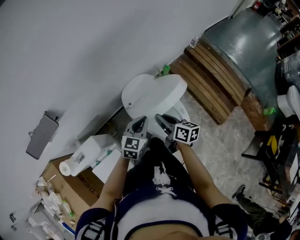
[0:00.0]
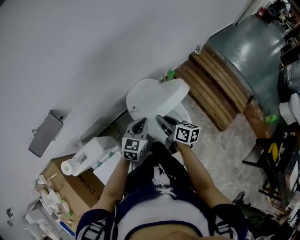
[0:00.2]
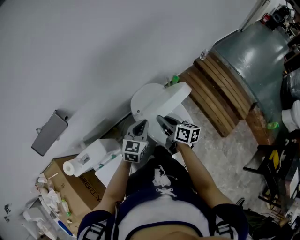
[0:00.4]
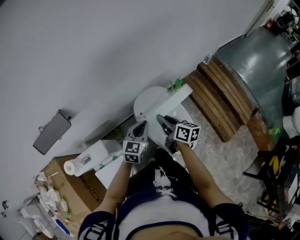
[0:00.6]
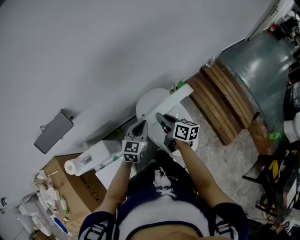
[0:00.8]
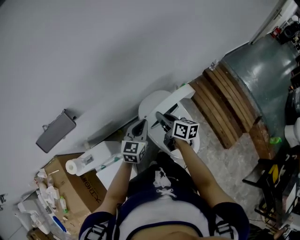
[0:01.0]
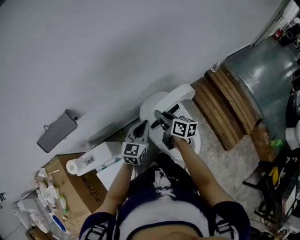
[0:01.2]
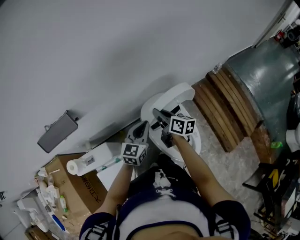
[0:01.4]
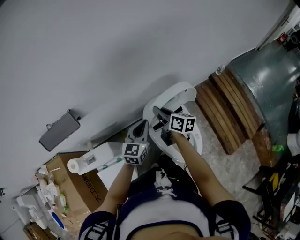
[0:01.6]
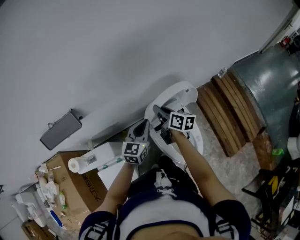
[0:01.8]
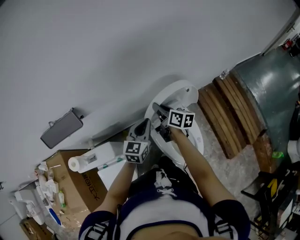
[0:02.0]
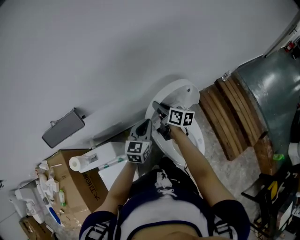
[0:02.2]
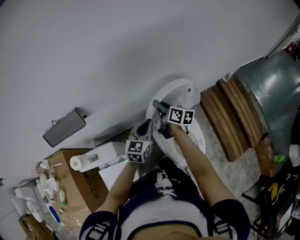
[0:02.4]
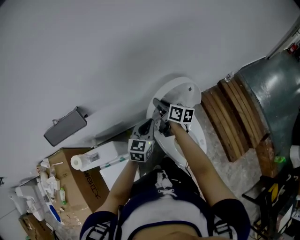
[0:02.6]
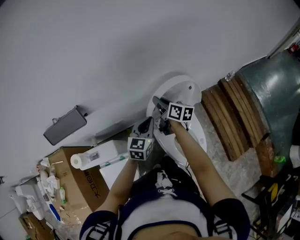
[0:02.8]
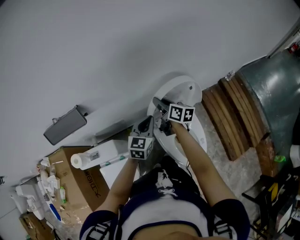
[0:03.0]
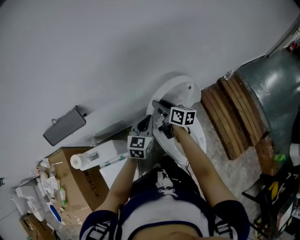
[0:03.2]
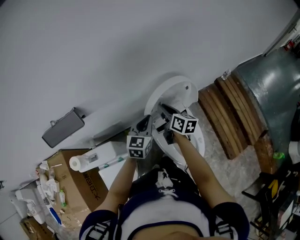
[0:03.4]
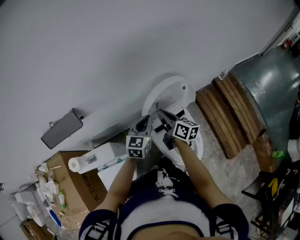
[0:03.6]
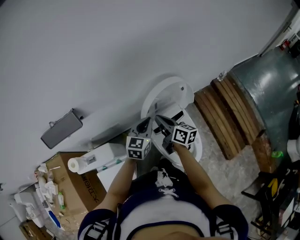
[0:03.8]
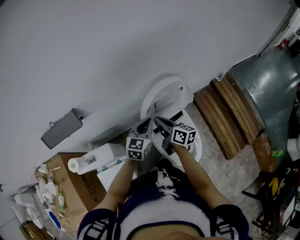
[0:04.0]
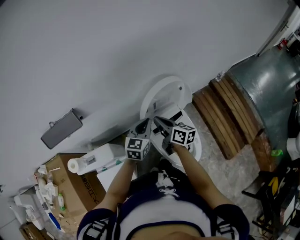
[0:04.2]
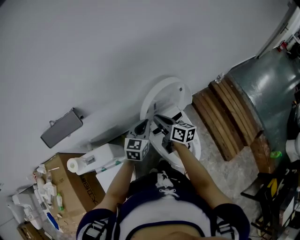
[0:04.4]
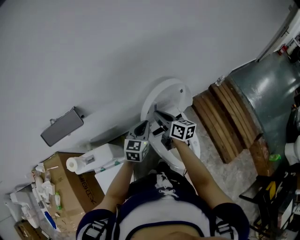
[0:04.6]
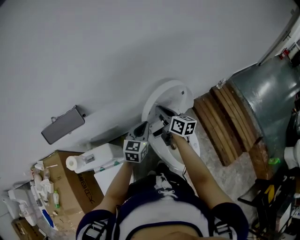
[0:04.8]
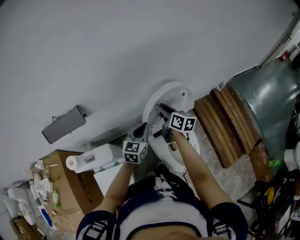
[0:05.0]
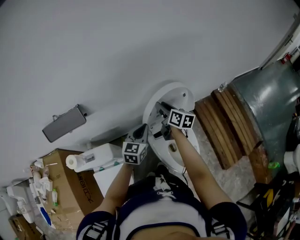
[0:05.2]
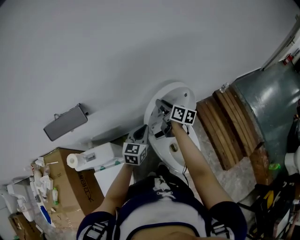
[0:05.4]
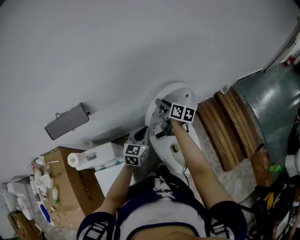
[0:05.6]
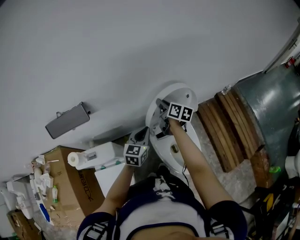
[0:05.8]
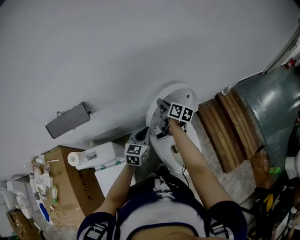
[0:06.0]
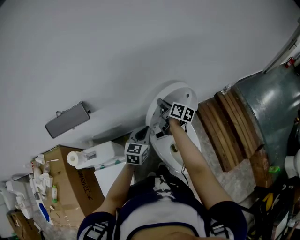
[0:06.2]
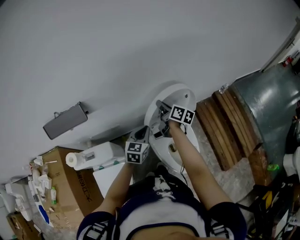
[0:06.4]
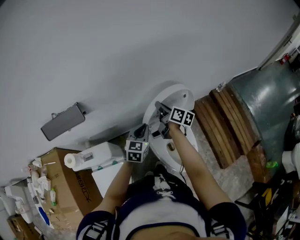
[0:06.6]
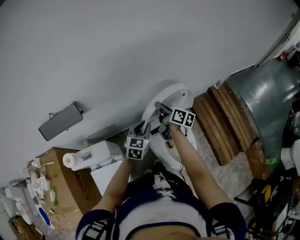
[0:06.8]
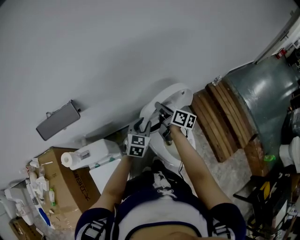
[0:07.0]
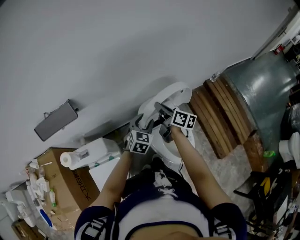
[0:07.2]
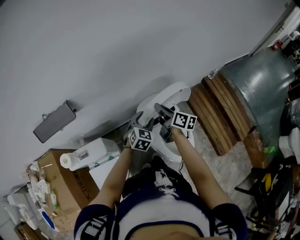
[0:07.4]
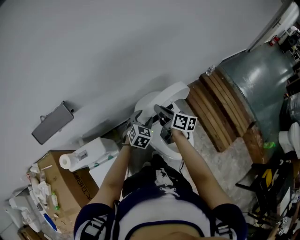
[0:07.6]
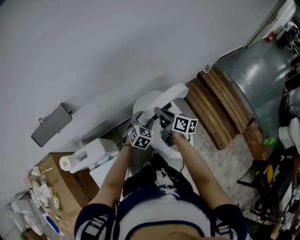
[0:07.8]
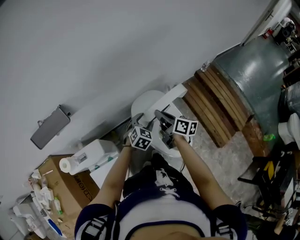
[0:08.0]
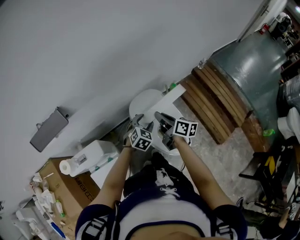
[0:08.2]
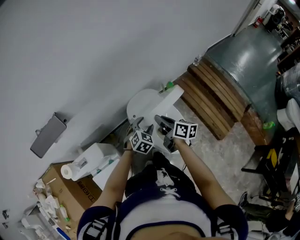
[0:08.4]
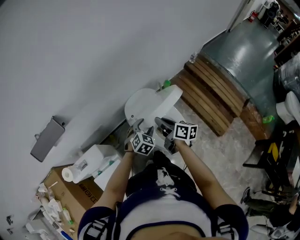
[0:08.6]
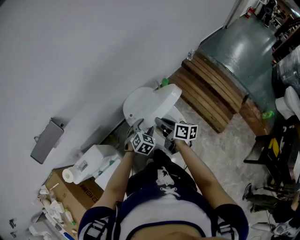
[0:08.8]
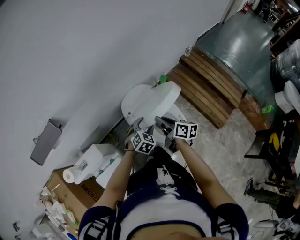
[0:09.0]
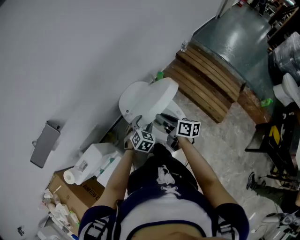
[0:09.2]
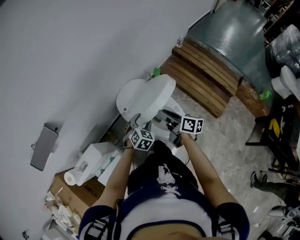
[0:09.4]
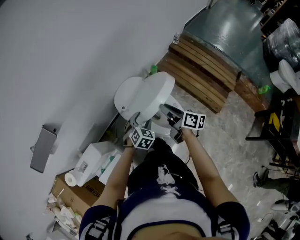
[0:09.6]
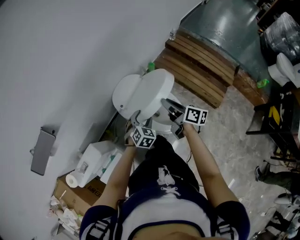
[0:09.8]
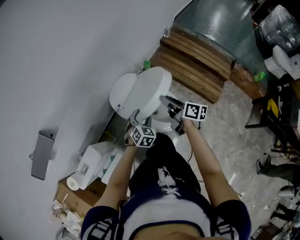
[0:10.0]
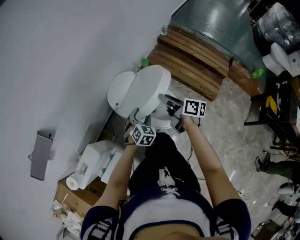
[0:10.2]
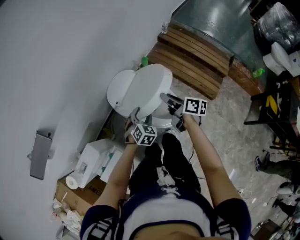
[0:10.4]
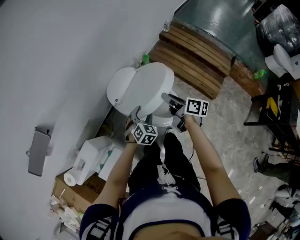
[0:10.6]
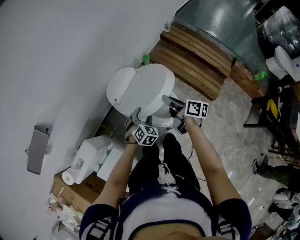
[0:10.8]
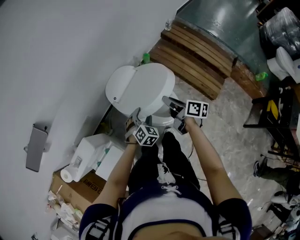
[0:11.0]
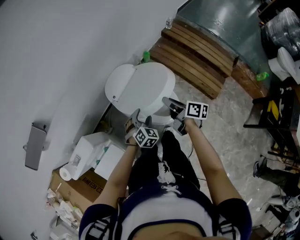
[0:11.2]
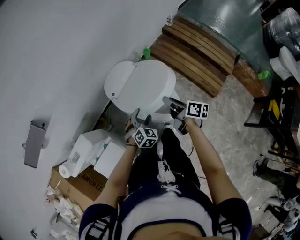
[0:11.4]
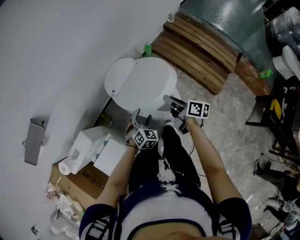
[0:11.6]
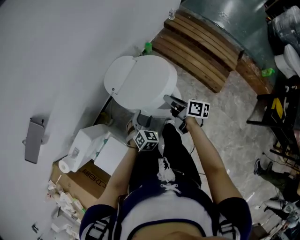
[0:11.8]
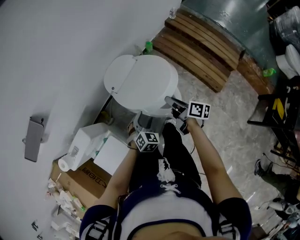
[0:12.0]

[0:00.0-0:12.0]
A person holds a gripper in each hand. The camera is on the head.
0:00.0 to 0:01.6: The right gripper travels forward and to the left by about 20 cm; the left gripper heads forward, to the left and upward, covering about 15 cm, and rotates some 20 degrees.
0:01.6 to 0:03.0: The right gripper goes about 5 cm forward.
0:03.0 to 0:04.4: The right gripper heads backward, covering about 10 cm, and opens, then closes again.
0:04.4 to 0:06.0: The right gripper shifts some 10 cm forward.
0:06.0 to 0:07.6: The right gripper travels backward by approximately 10 cm. The left gripper moves to the right and downward, about 10 cm, rotates approximately 30 degrees, and opens up.
0:07.6 to 0:09.0: The two grippers go some 15 cm backward, to the right and downward.
0:09.0 to 0:10.4: The right gripper travels to the right by some 10 cm; the left gripper changes place by approximately 5 cm.
0:10.4 to 0:12.0: The left gripper travels backward by approximately 10 cm. The right gripper shifts roughly 10 cm backward and downward.

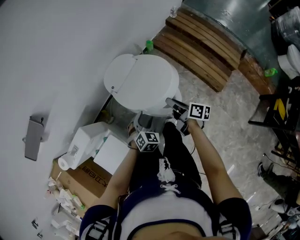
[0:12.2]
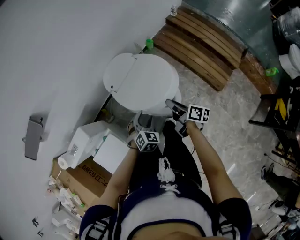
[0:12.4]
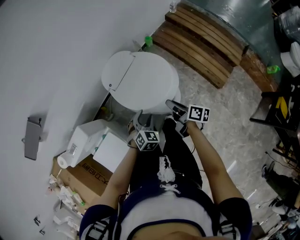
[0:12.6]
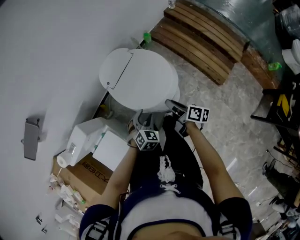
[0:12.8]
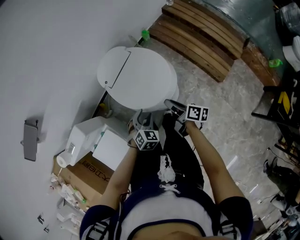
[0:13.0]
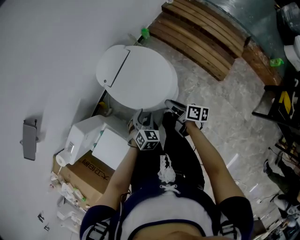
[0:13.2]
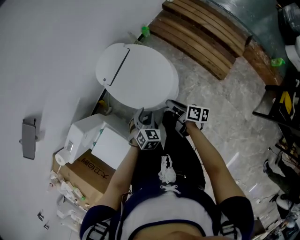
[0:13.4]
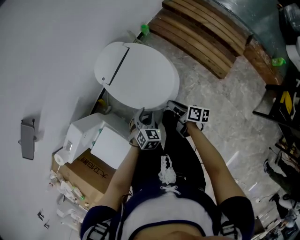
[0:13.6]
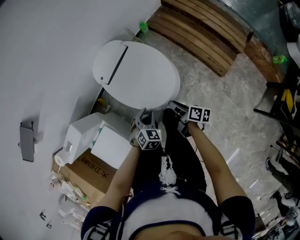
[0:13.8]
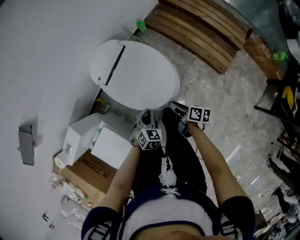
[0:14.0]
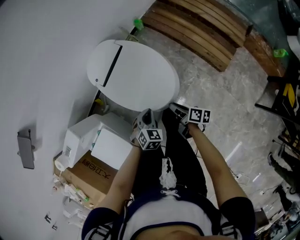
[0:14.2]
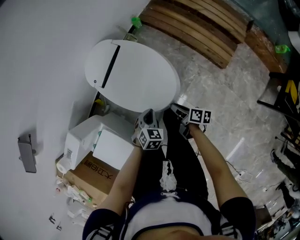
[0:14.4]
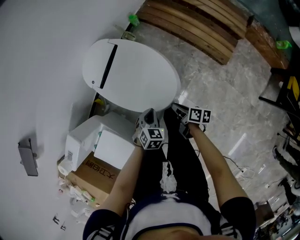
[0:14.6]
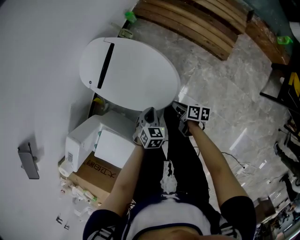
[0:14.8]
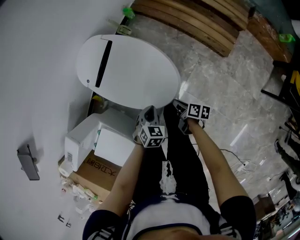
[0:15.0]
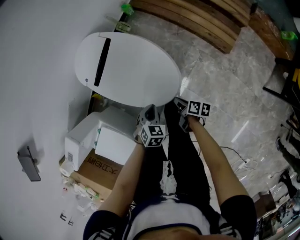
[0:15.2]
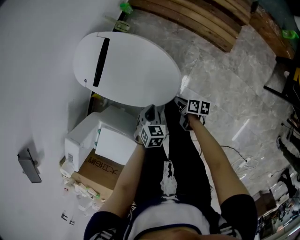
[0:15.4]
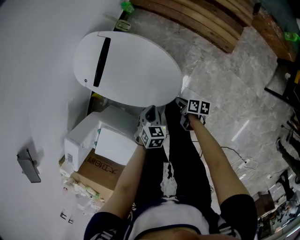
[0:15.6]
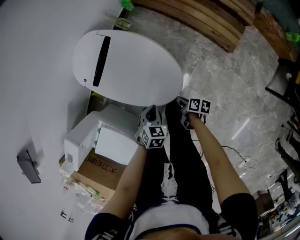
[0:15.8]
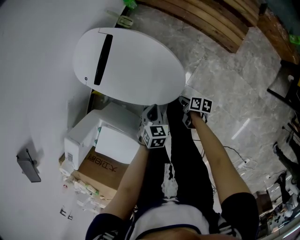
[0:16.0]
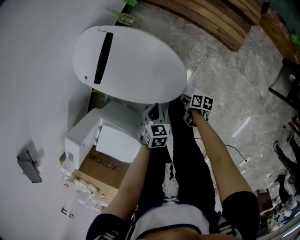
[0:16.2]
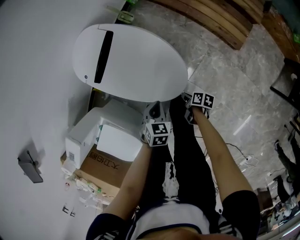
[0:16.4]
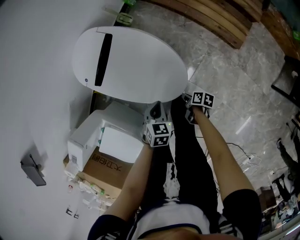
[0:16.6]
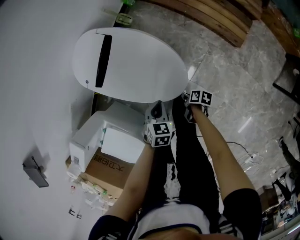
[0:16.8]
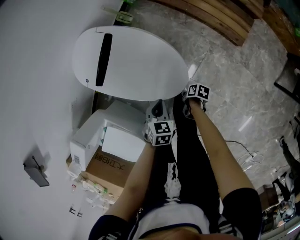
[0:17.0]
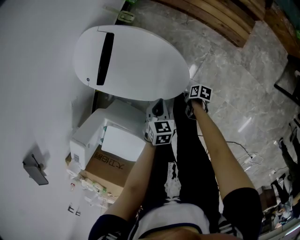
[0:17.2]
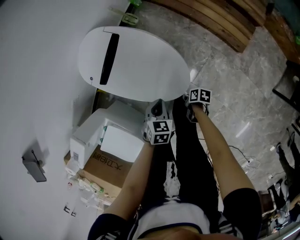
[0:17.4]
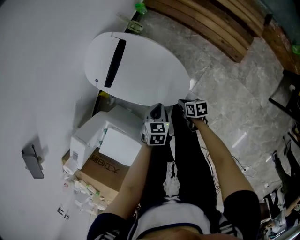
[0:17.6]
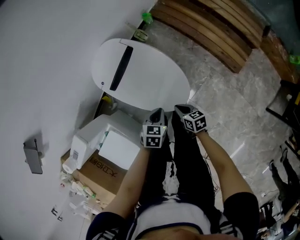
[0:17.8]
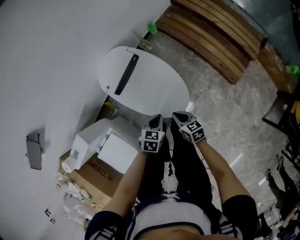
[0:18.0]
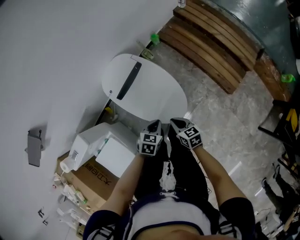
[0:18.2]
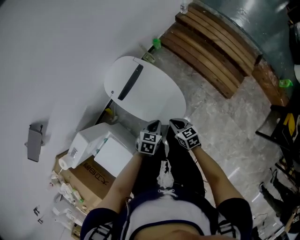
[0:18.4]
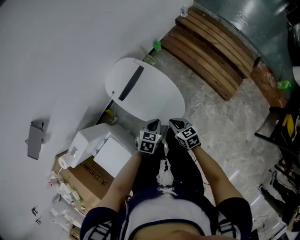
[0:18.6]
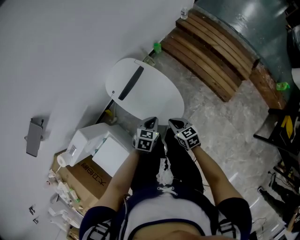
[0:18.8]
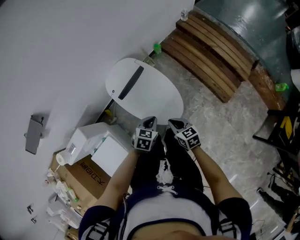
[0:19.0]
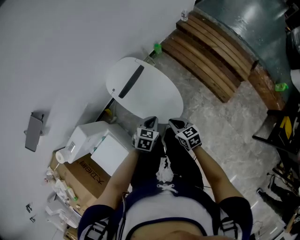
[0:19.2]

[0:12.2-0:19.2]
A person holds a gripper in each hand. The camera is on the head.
0:12.2 to 0:13.6: The left gripper shifts by approximately 5 cm. The right gripper goes some 10 cm downward and backward.
0:13.6 to 0:15.0: The right gripper heads downward, covering approximately 15 cm, while the left gripper goes roughly 10 cm downward, and closes.
0:15.0 to 0:16.4: The right gripper moves downward, roughly 10 cm.
0:16.4 to 0:17.8: The left gripper moves upward, some 5 cm. Meanwhile the right gripper travels upward and forward by some 15 cm, and twists approximately 50 degrees counterclockwise, seen from behind.
0:17.8 to 0:19.2: The left gripper shifts about 10 cm upward. Meanwhile the right gripper heads upward, covering roughly 15 cm, and rotates roughly 20 degrees.

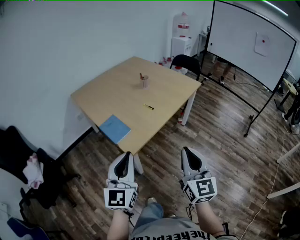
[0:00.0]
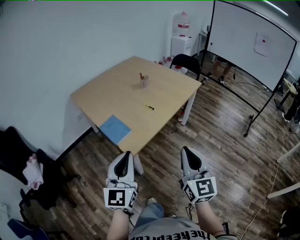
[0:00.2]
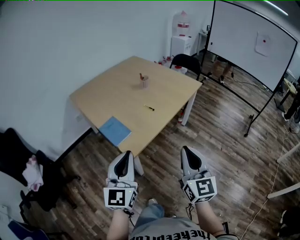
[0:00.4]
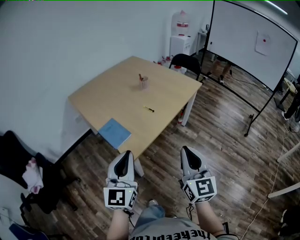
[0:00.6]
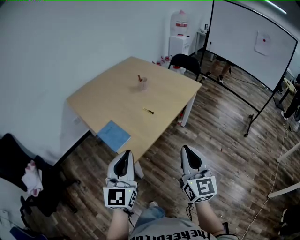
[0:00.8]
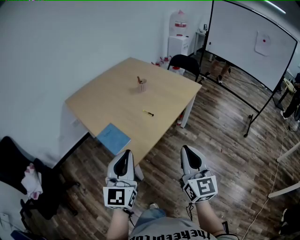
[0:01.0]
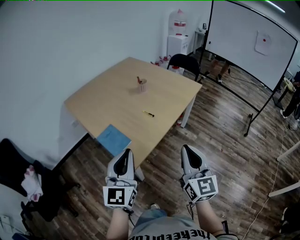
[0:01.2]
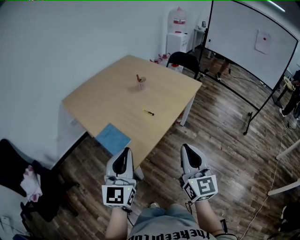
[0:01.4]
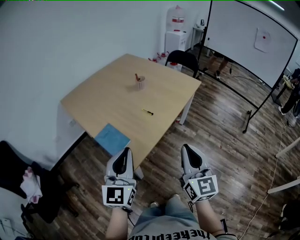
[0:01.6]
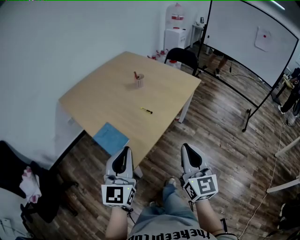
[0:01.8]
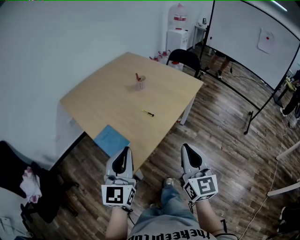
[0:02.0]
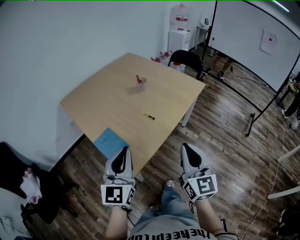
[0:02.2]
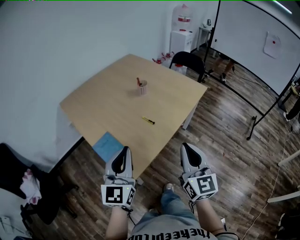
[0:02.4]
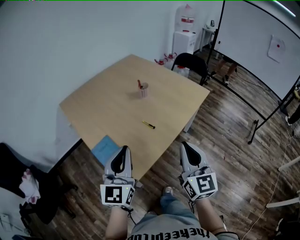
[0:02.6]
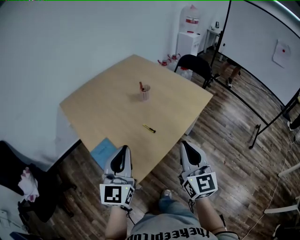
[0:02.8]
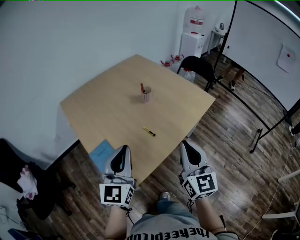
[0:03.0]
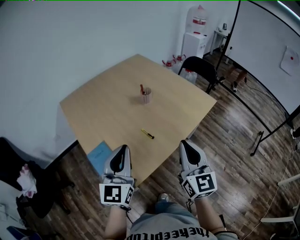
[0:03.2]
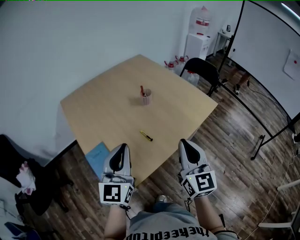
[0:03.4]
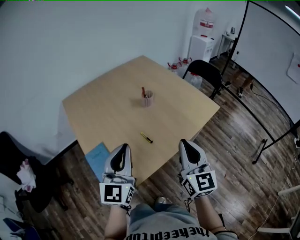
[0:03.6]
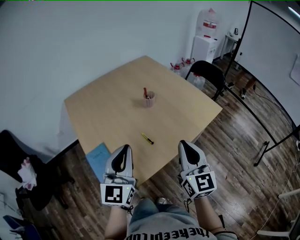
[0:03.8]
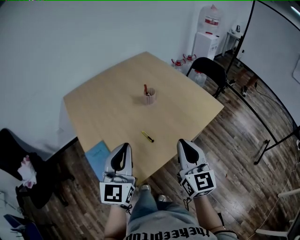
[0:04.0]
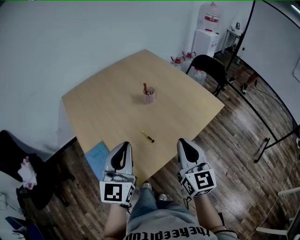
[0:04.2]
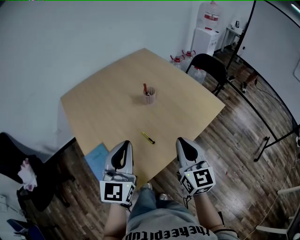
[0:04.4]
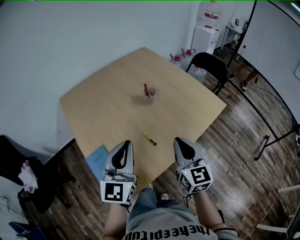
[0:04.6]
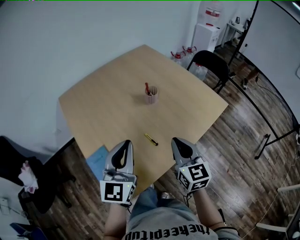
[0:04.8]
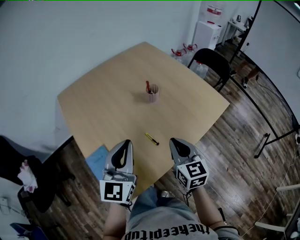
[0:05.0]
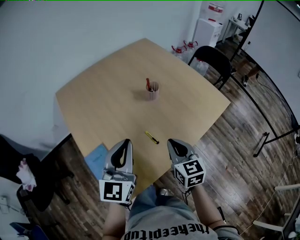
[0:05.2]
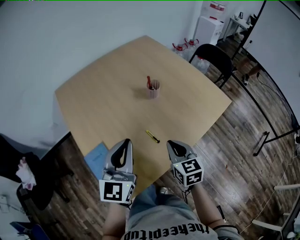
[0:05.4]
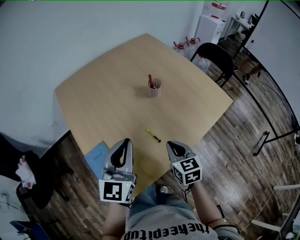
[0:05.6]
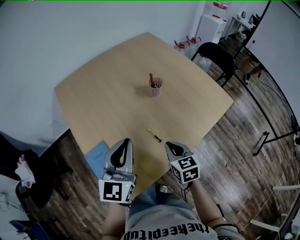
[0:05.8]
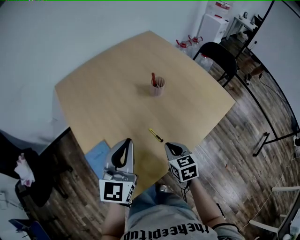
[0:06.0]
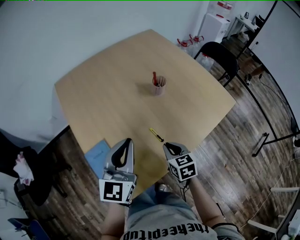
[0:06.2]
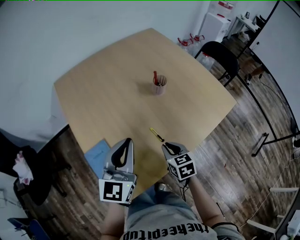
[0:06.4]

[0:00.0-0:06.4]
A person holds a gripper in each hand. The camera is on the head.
0:00.0 to 0:01.6: The two grippers go about 10 cm forward.
0:01.6 to 0:03.2: The two grippers go some 20 cm forward.
0:03.2 to 0:04.8: The right gripper moves forward and downward, about 15 cm. Meanwhile the left gripper travels forward by about 10 cm.
0:04.8 to 0:06.4: The left gripper moves about 5 cm; the right gripper travels downward by some 15 cm, and tips its fingers downward by some 30 degrees.
